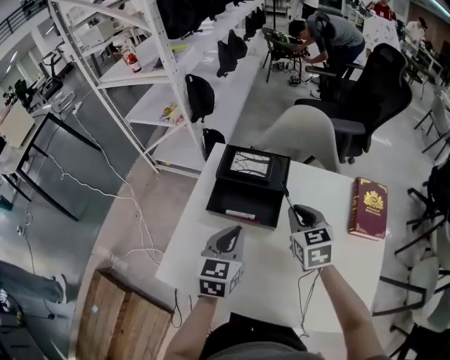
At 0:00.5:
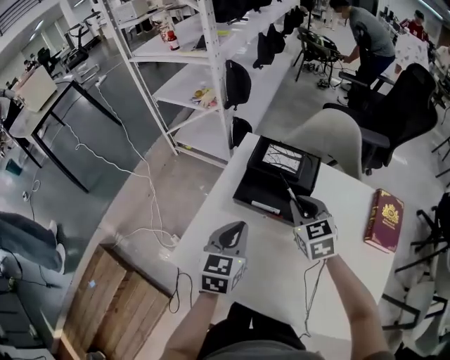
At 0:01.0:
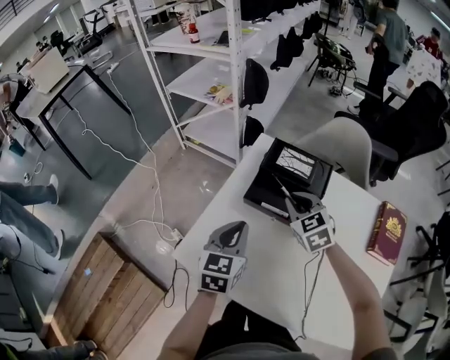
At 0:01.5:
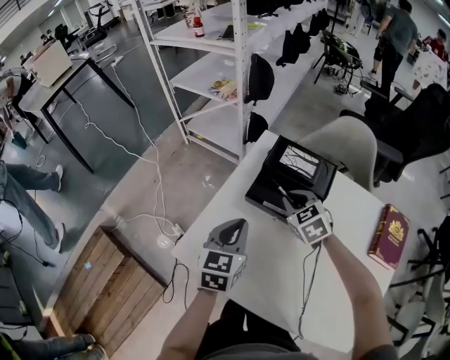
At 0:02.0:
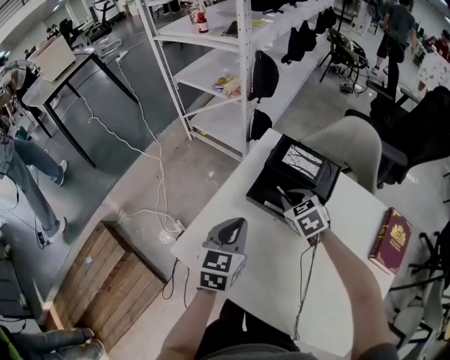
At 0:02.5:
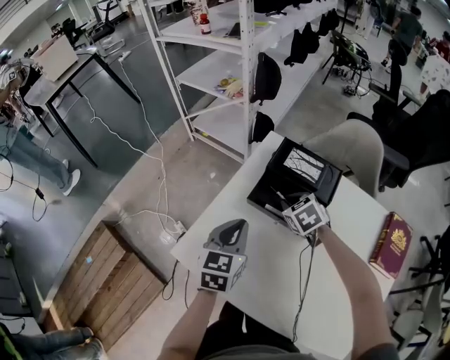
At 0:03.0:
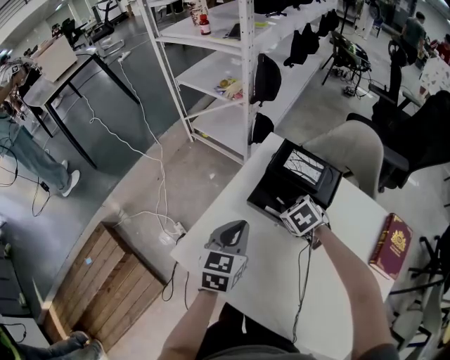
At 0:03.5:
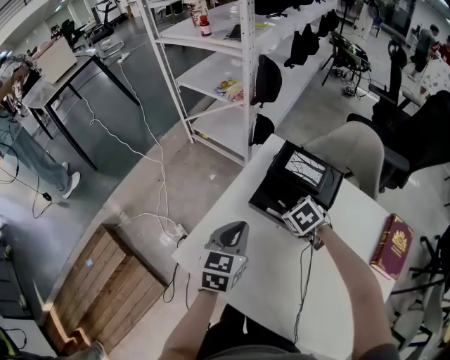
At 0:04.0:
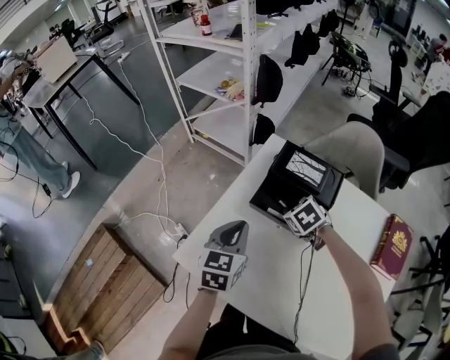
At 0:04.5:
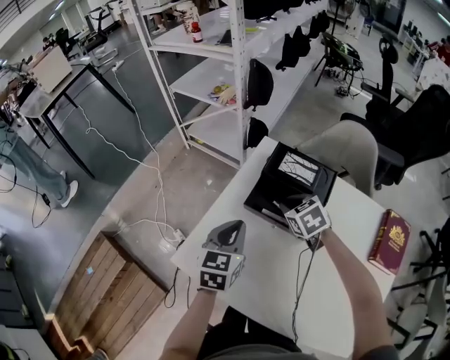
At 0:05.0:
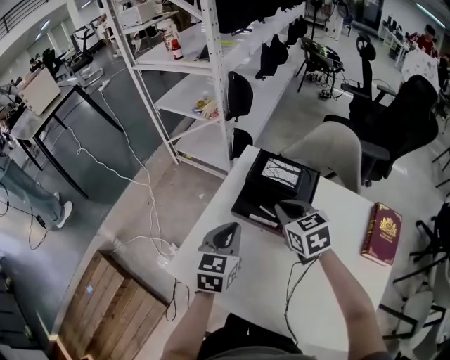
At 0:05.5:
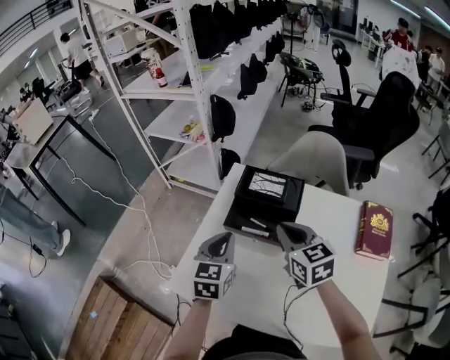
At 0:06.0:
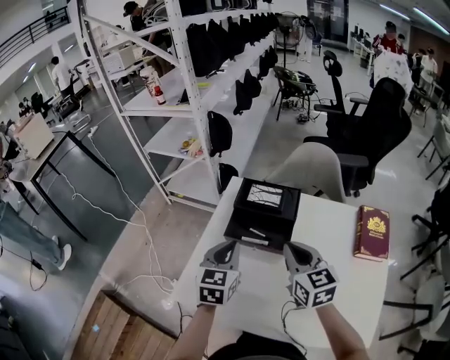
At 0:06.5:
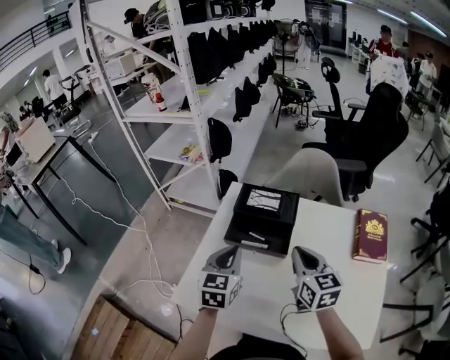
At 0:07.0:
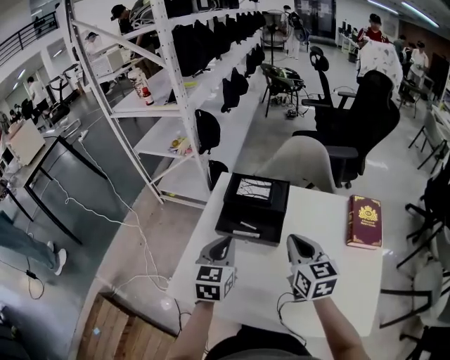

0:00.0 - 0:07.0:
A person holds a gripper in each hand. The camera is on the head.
0:00.0 - 0:02.0: The left gripper is displaced to the left by some 10 cm, while the right gripper shifts about 20 cm to the left, forward and downward, and rotates roughly 40 degrees.
0:02.0 - 0:03.5: The grippers move only a little.
0:03.5 - 0:05.0: The right gripper heads upward, covering some 15 cm, and rotates approximately 30 degrees.
0:05.0 - 0:07.0: The right gripper shifts some 15 cm backward and to the right, and rotates approximately 30 degrees.

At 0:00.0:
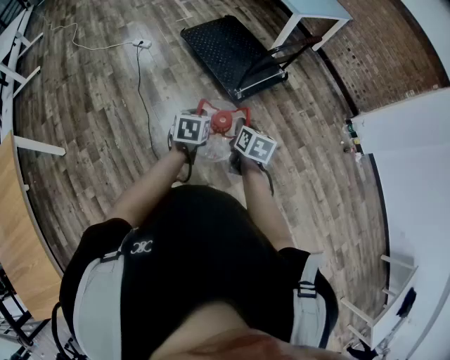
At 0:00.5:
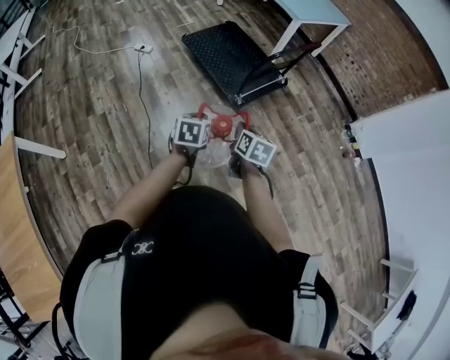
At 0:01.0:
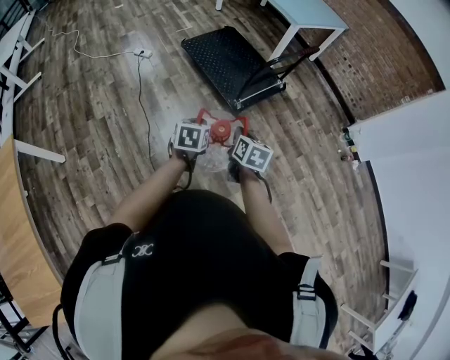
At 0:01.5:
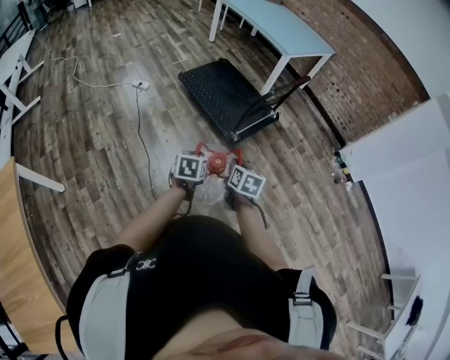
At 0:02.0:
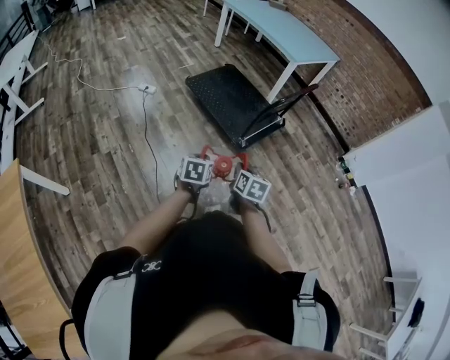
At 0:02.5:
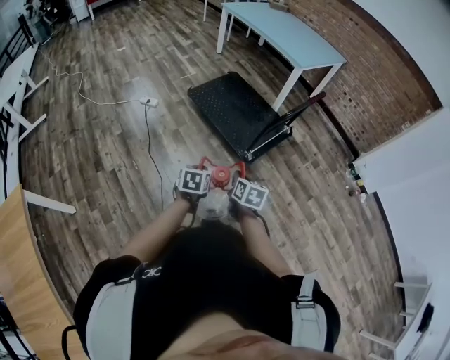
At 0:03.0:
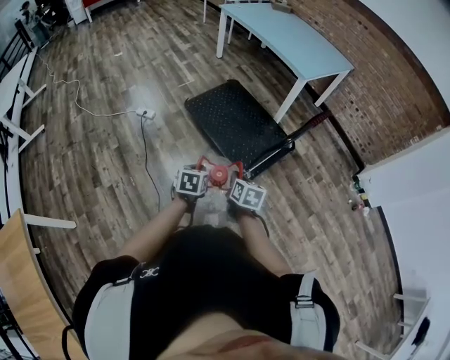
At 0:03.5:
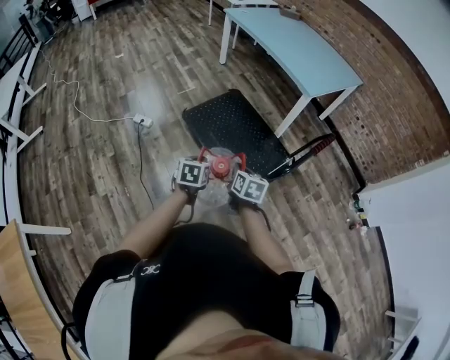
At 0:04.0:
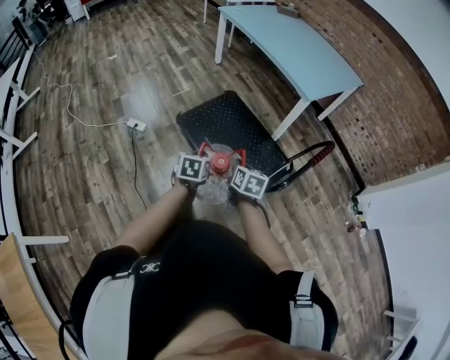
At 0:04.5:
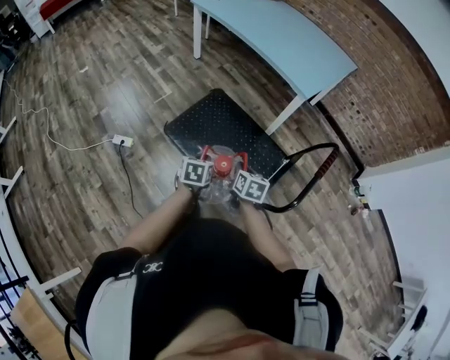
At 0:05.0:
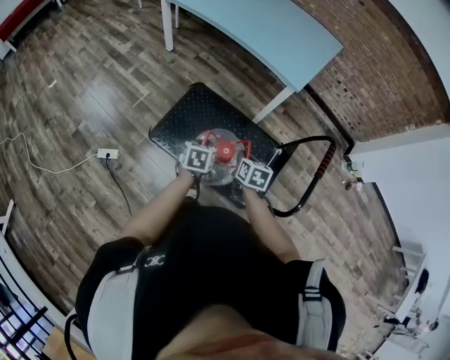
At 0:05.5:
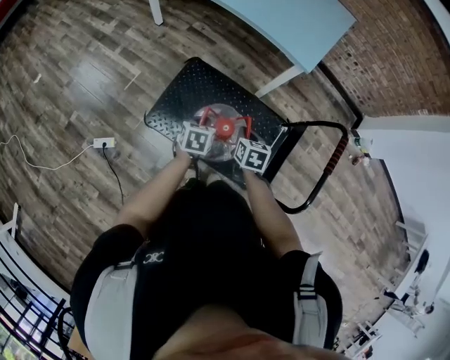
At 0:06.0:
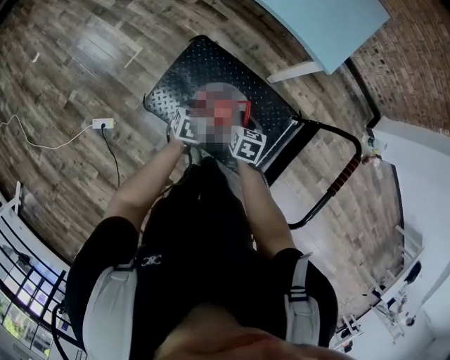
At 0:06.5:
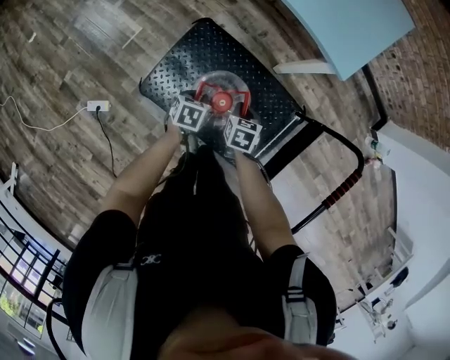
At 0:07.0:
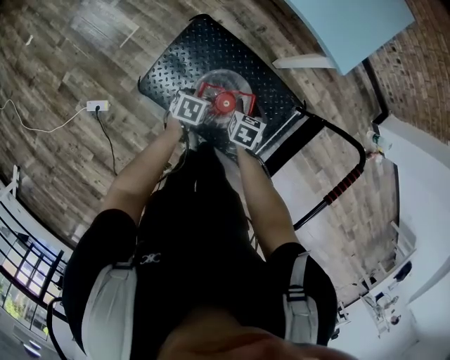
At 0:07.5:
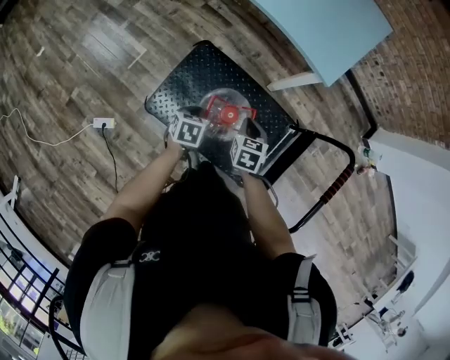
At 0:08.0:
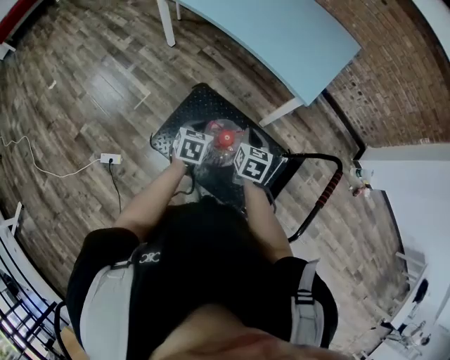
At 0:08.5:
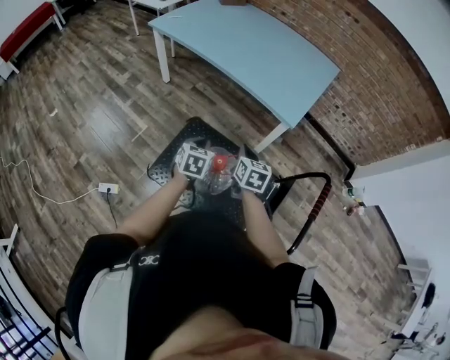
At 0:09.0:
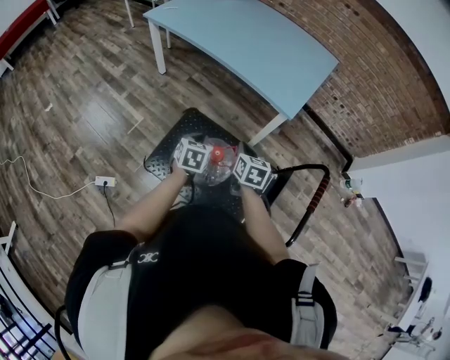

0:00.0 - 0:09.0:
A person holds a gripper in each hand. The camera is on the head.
0:00.0 - 0:02.0: The two grippers go some 10 cm to the left.
0:02.0 - 0:04.5: The two grippers travel together, forward, roughly 60 cm.
0:04.5 - 0:07.0: The right gripper changes place by about 30 cm, rotates some 20 degrees, and opens up. The left gripper ends up approximately 35 cm from where it was, changes its angle by about 30 degrees, and opens.
0:07.0 - 0:09.0: Both grippers move upward, some 25 cm. The left gripper turns by approximately 30 degrees, and closes up; the right gripper rotates some 20 degrees, and closes.

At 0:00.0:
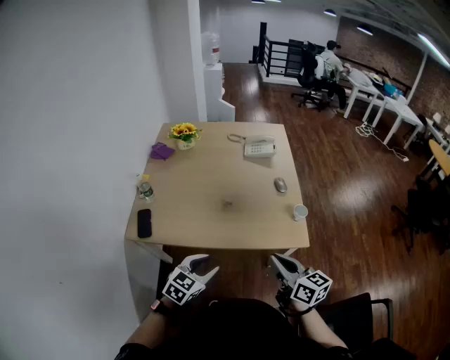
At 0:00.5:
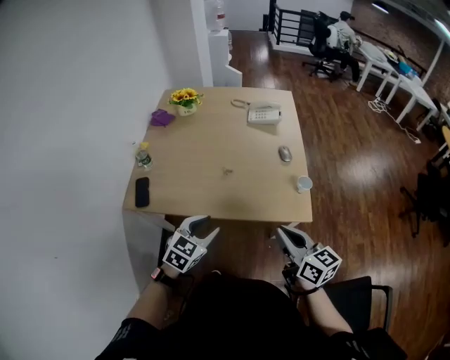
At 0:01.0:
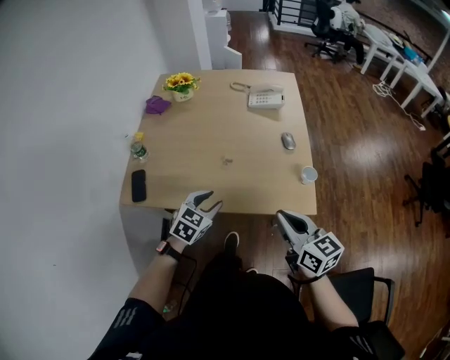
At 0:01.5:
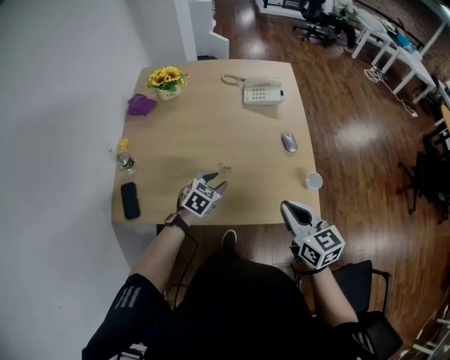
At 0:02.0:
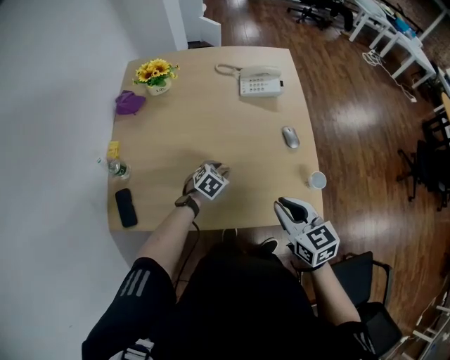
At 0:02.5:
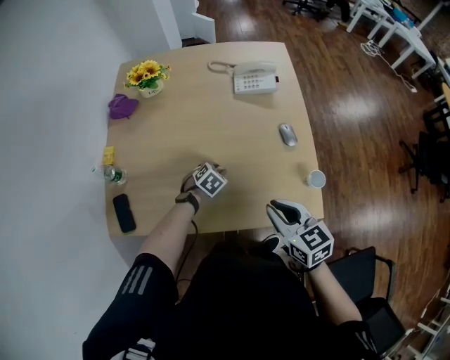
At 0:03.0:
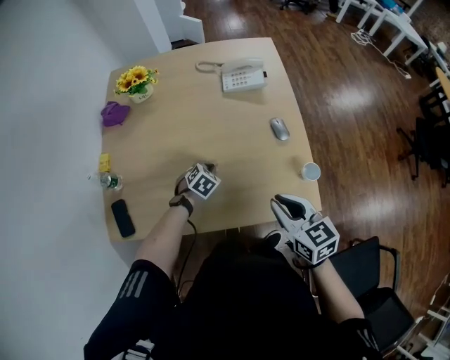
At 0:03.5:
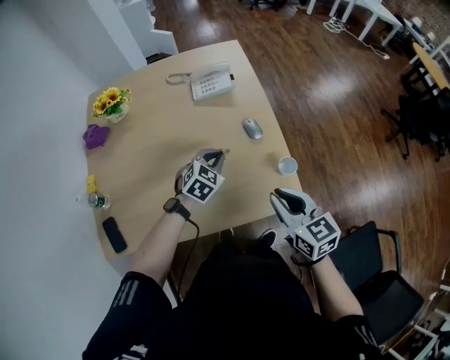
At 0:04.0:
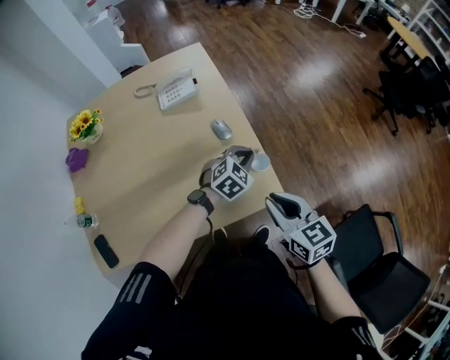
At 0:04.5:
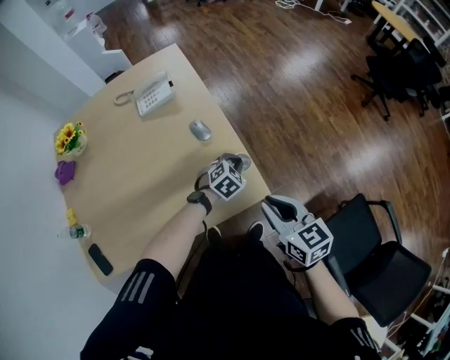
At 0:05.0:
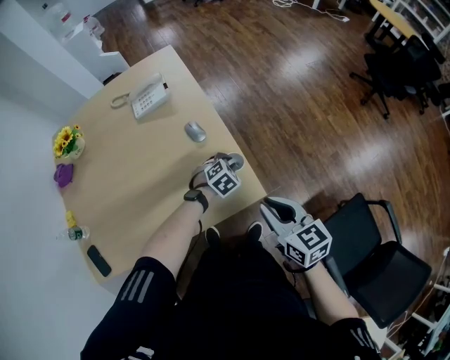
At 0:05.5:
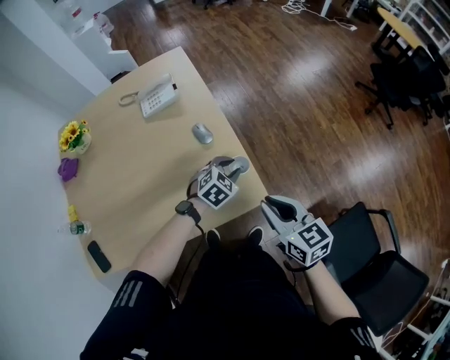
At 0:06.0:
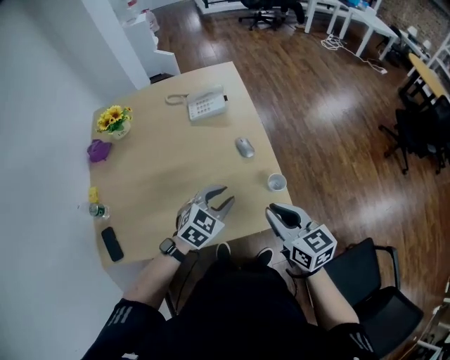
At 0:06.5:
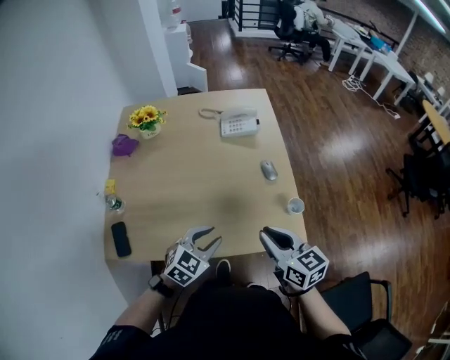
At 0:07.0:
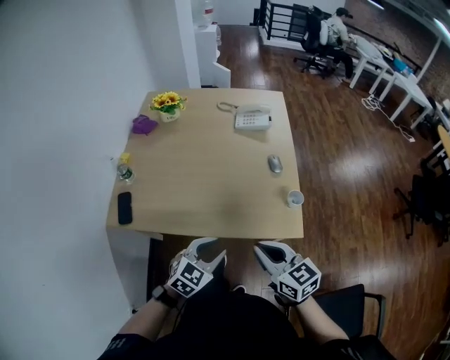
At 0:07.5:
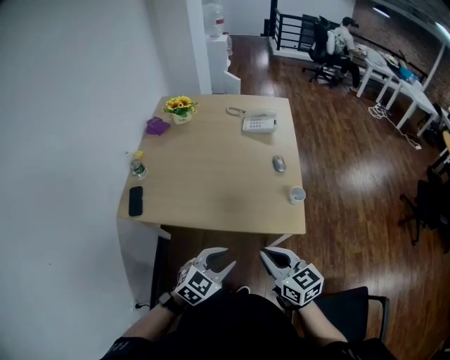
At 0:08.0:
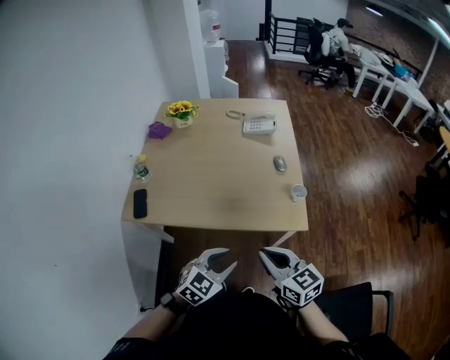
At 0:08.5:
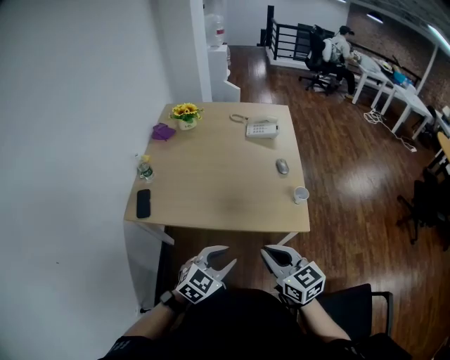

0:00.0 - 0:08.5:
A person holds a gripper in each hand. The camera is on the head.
0:00.0 - 0:02.0: The left gripper shifts approximately 40 cm forward and downward, and changes its angle by approximately 20 degrees. Meanwhile the right gripper shifts approximately 20 cm forward, and swivels some 30 degrees.
0:02.0 - 0:04.0: The left gripper moves to the right, roughly 35 cm, rotates about 30 degrees, and closes its fingers; the right gripper shifts approximately 20 cm to the right.
0:04.0 - 0:06.5: The left gripper is displaced to the left and backward by roughly 35 cm, swivels about 20 degrees, and opens its fingers. Meanwhile the right gripper is displaced to the left by approximately 15 cm.
0:06.5 - 0:08.5: Both grippers travel together backward, some 20 cm.

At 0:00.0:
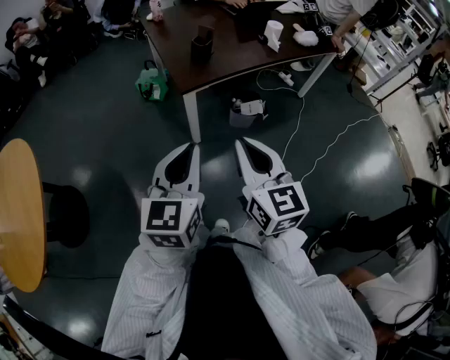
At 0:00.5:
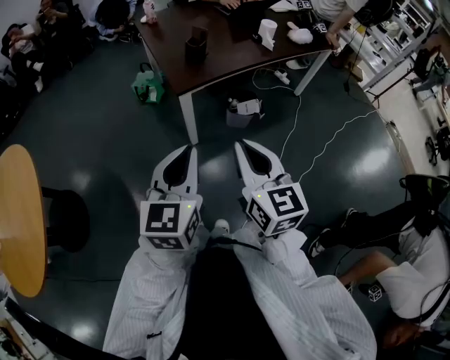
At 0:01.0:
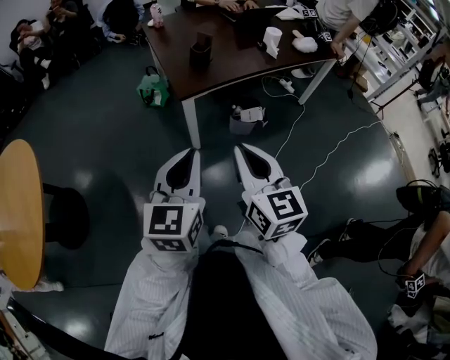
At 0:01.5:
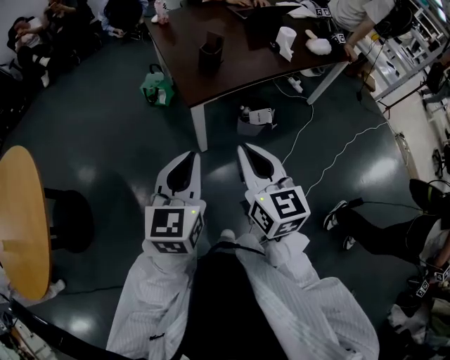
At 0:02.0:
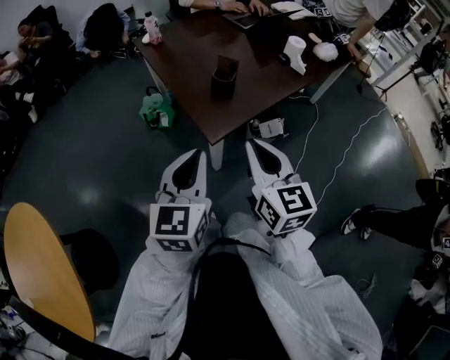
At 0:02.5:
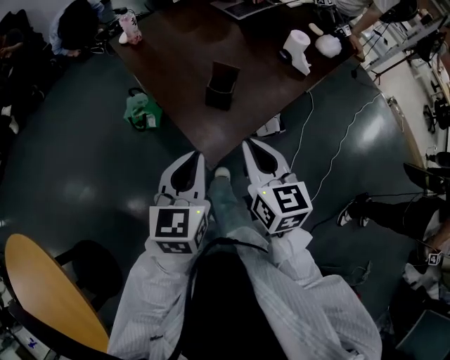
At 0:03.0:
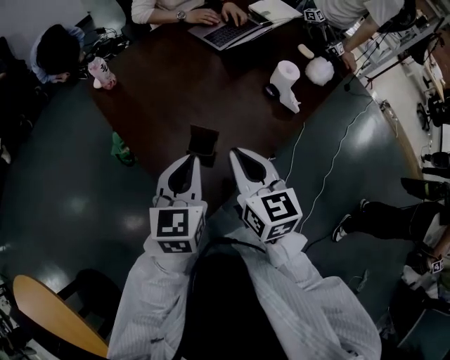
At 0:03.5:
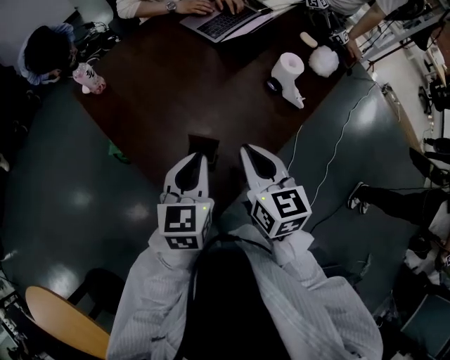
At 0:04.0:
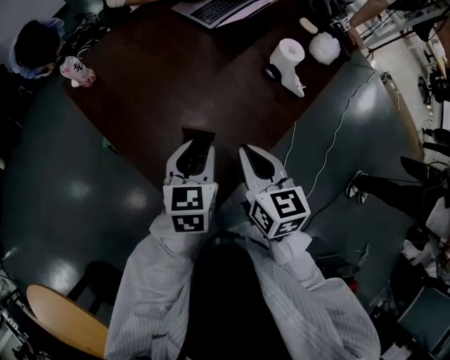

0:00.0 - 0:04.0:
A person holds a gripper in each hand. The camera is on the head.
0:00.0 - 0:02.0: The right gripper moves forward, roughly 25 cm. The left gripper heads forward and to the left, covering approximately 30 cm.
0:02.0 - 0:04.0: Both grippers travel together forward, roughly 35 cm. The left gripper rotates some 20 degrees, and opens.
